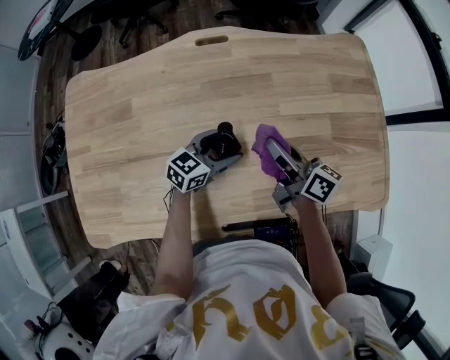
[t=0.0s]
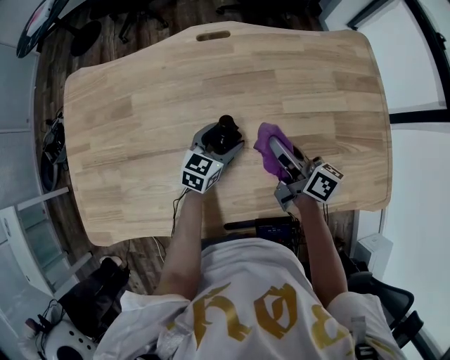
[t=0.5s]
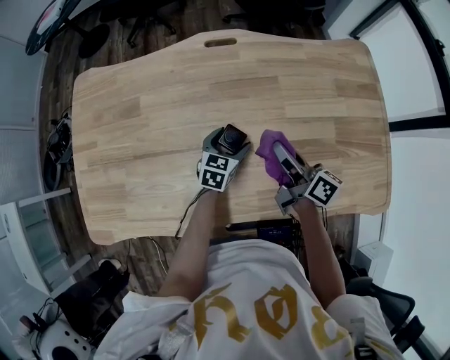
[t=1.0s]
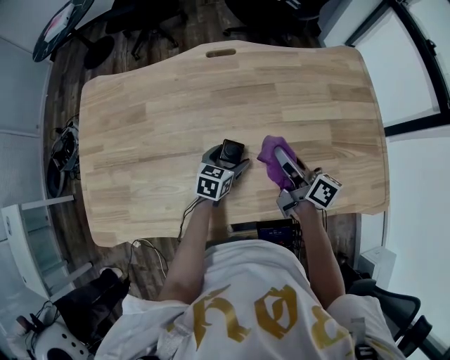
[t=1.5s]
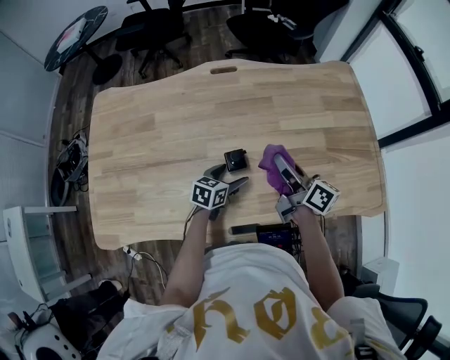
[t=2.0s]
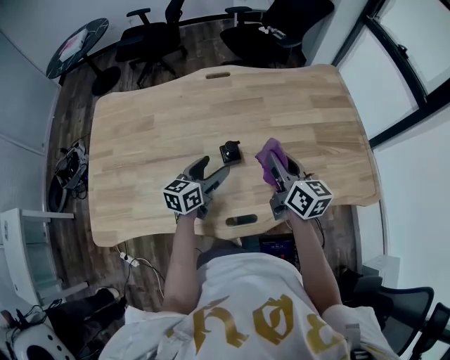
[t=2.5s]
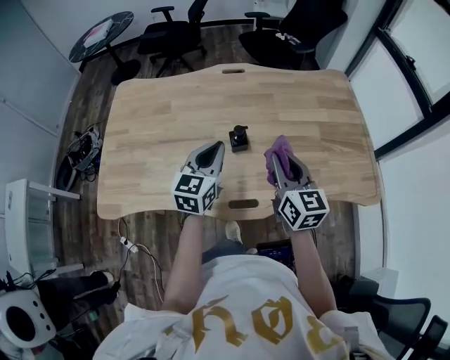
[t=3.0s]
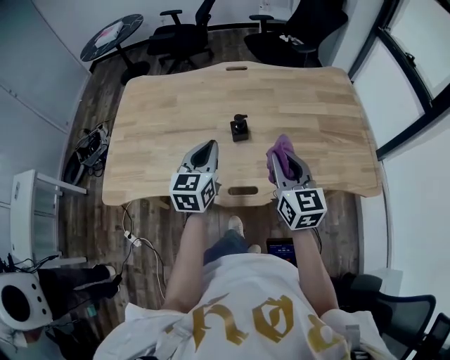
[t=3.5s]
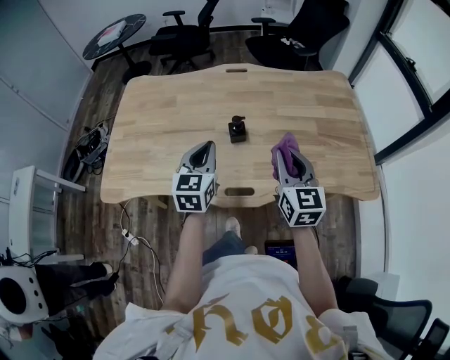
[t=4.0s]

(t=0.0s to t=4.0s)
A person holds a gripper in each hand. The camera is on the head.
t=0.0s - t=2.0s: The grippers both shift backward by some 5 cm. The left gripper swivels approximately 20 degrees.
t=2.0s - t=4.0s: The right gripper is displaced backward and upward by roughly 20 cm, and twists about 50 degrees counterclockwise, seen from behind; the left gripper goes about 30 cm upward and backward, changes its angle by approximately 40 degrees, and closes up.

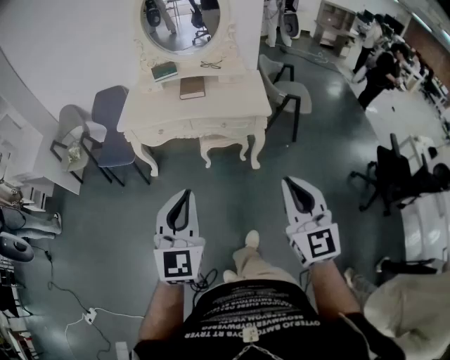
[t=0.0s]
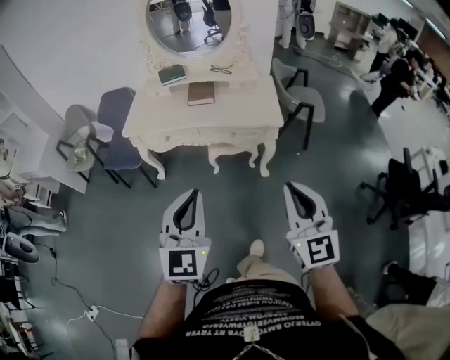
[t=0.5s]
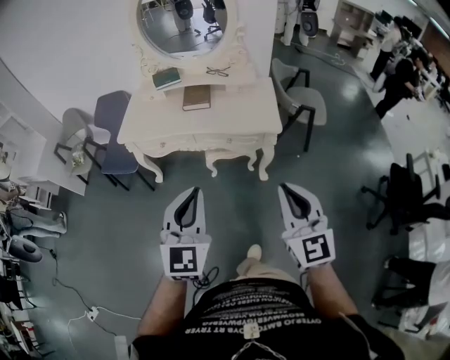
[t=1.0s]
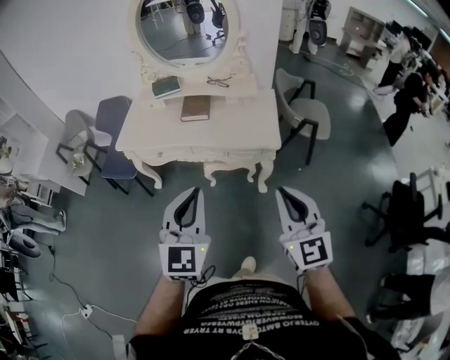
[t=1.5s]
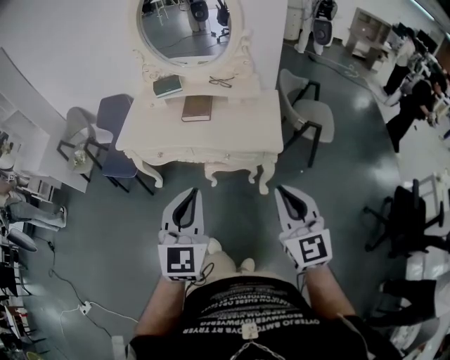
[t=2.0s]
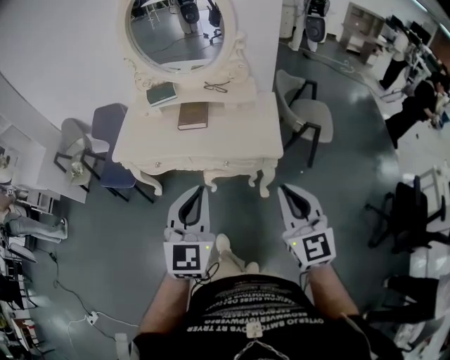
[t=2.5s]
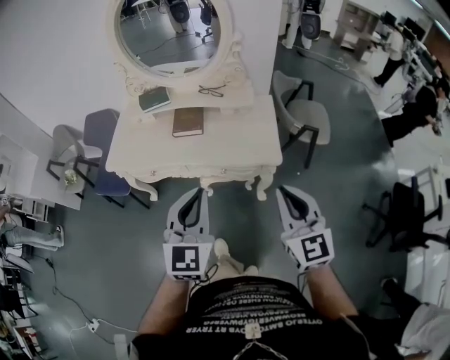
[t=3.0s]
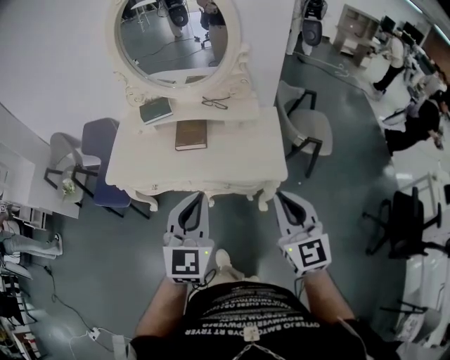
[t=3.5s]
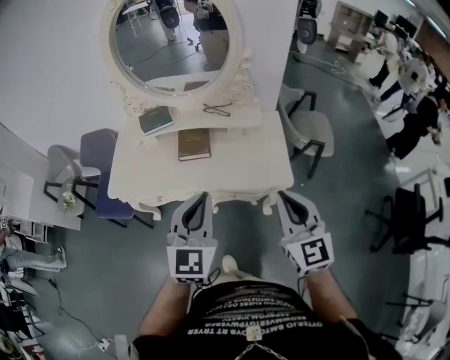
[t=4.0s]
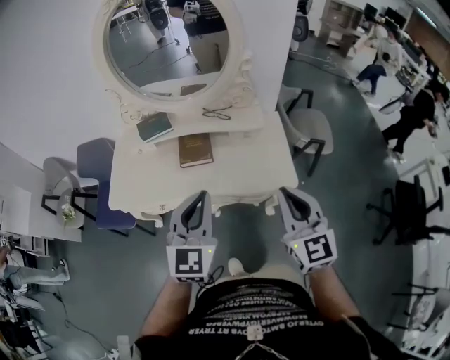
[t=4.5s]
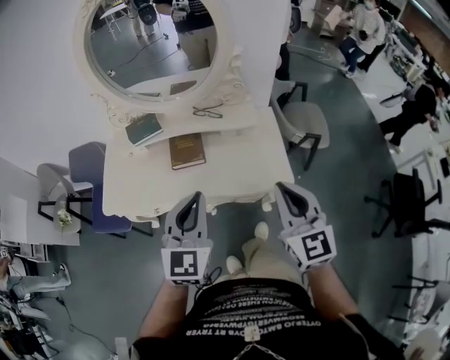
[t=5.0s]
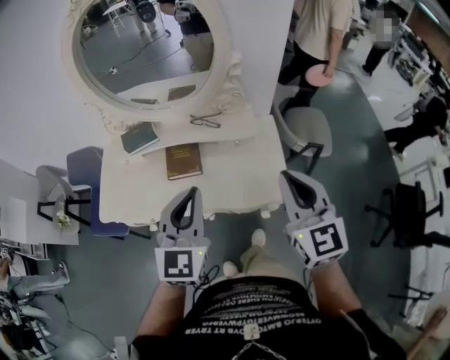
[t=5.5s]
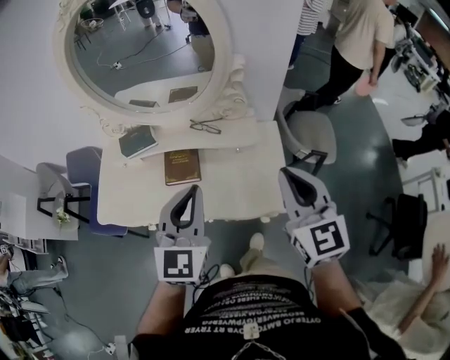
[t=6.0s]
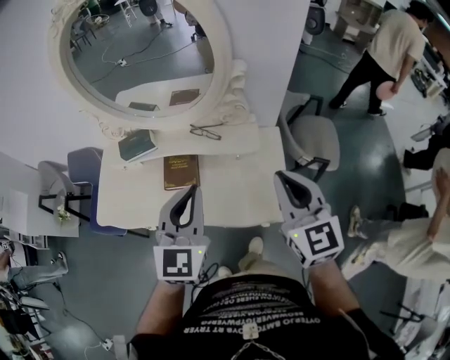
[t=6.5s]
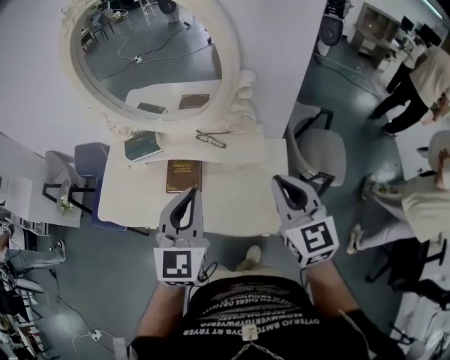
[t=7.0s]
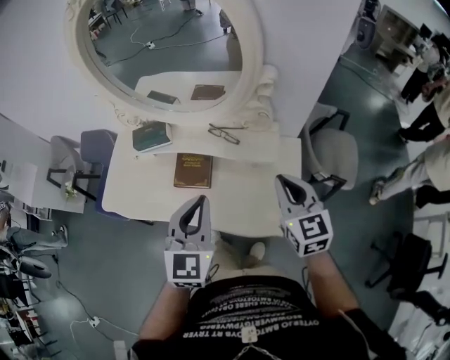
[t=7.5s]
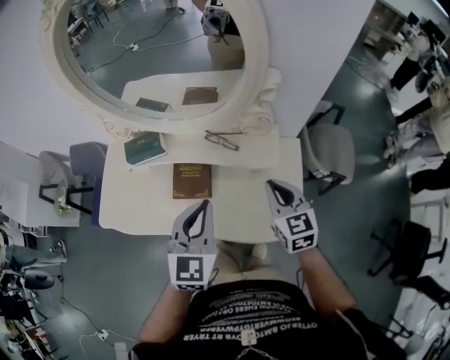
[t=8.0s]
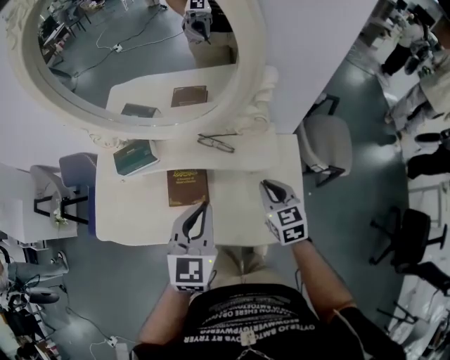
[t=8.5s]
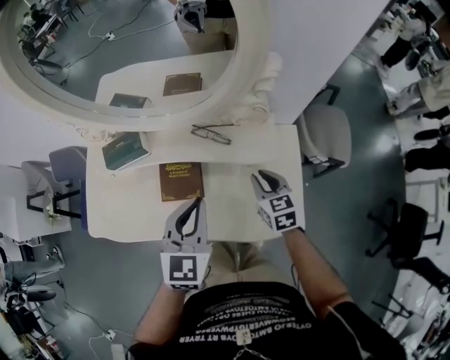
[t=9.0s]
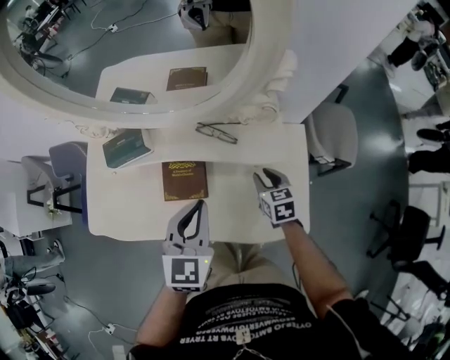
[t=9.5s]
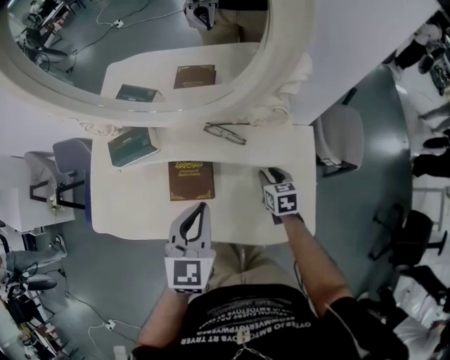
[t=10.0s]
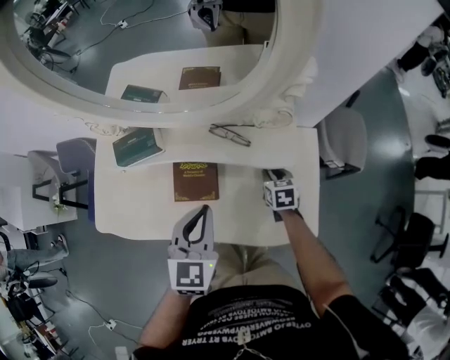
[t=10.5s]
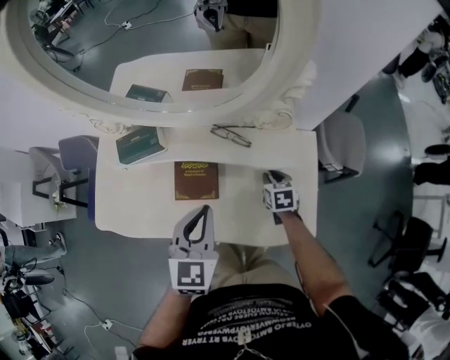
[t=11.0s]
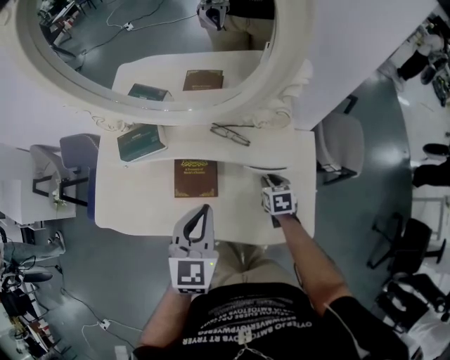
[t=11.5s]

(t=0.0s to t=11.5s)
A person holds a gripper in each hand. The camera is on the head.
t=0.0s - t=2.0s: Both grippers travel together forward and to the right, roughly 25 cm.
t=2.0s - t=4.0s: Both grippers travel together forward, some 20 cm.
t=4.0s - t=6.0s: The two grippers go approximately 20 cm forward.
t=6.0s - t=7.5s: The left gripper goes about 10 cm downward and forward, while the right gripper heads downward and forward, covering roughly 15 cm.
t=7.5s - t=9.5s: The left gripper moves downward and forward, roughly 15 cm. The right gripper goes roughly 25 cm downward, swivels roughly 30 degrees, and opens.
t=9.5s - t=11.5s: The right gripper shifts roughly 5 cm downward.

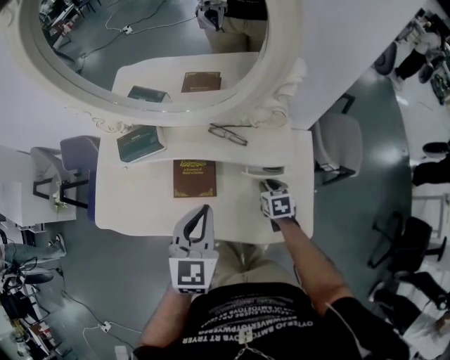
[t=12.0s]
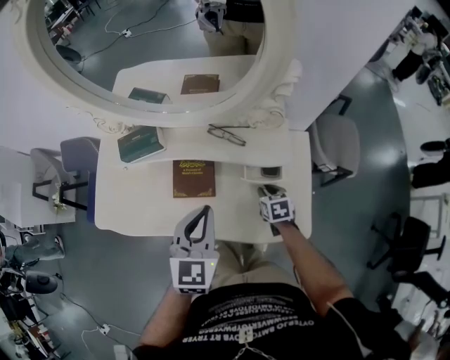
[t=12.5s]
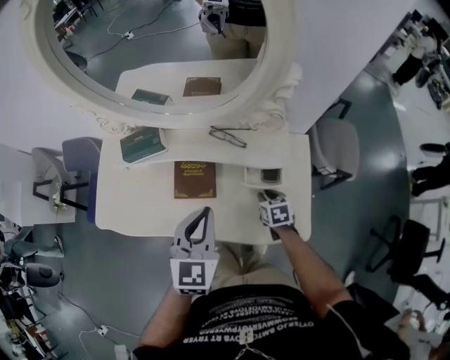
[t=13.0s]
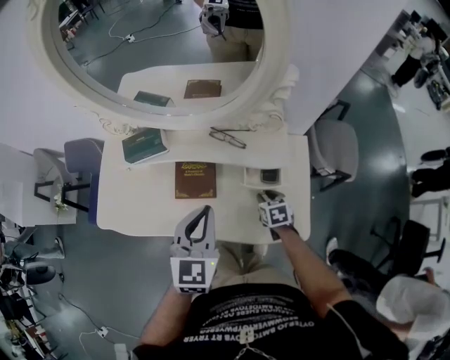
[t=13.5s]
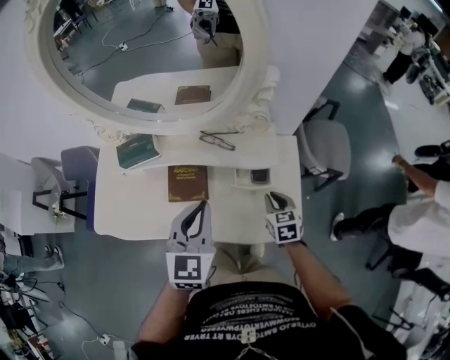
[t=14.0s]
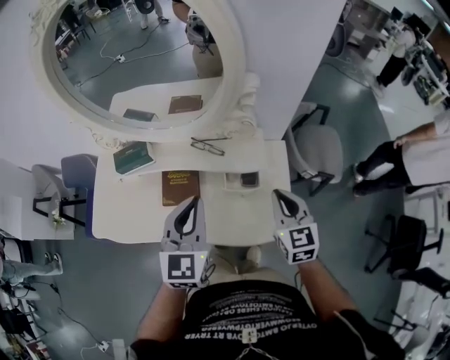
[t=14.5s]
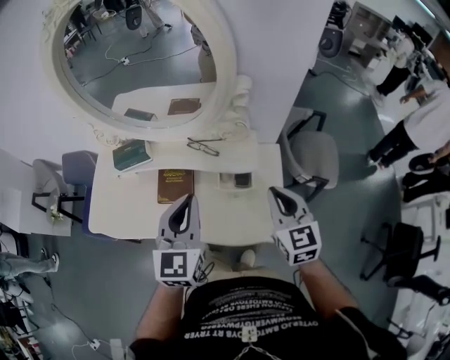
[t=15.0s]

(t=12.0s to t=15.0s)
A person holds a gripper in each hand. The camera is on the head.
t=12.0s - t=13.5s: The grippers make only small movements.
t=13.5s - t=15.0s: The left gripper travels upward and to the right by about 10 cm. Meanwhile the right gripper moves upward, roughly 30 cm, tilts its fingers some 40 degrees upward, and closes.

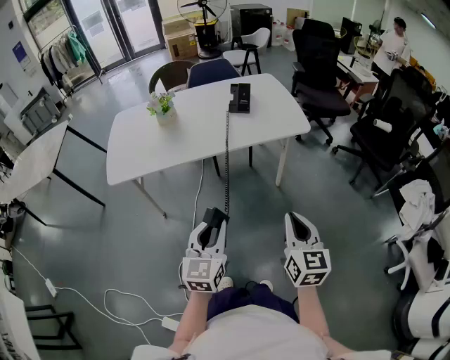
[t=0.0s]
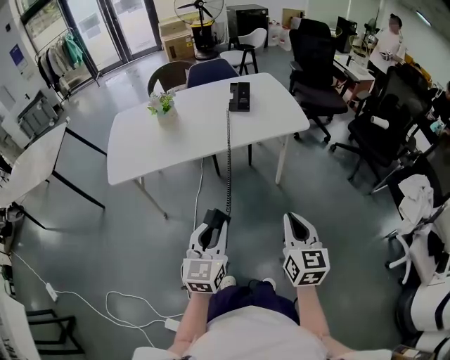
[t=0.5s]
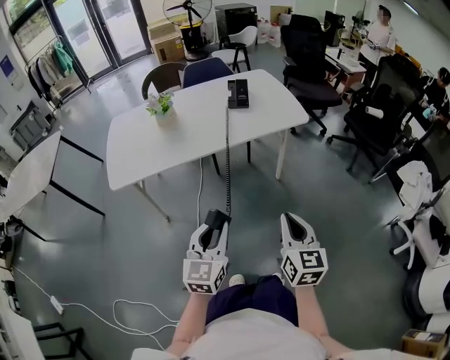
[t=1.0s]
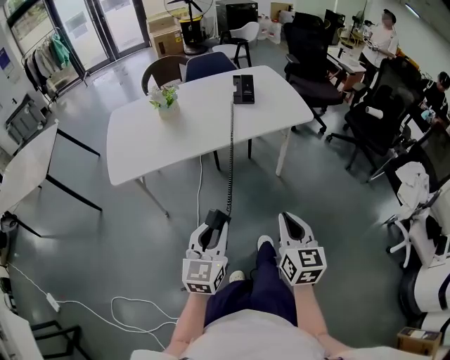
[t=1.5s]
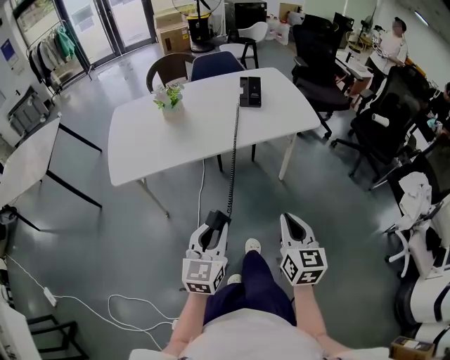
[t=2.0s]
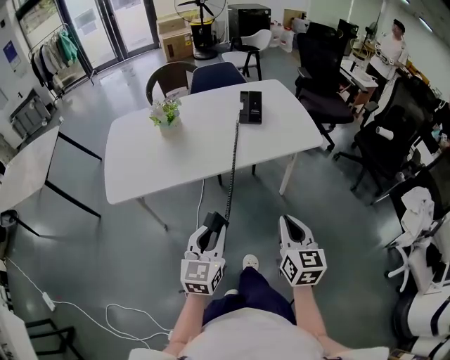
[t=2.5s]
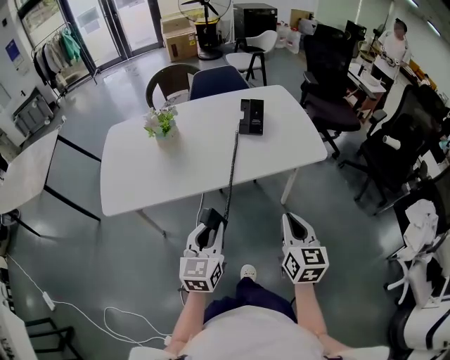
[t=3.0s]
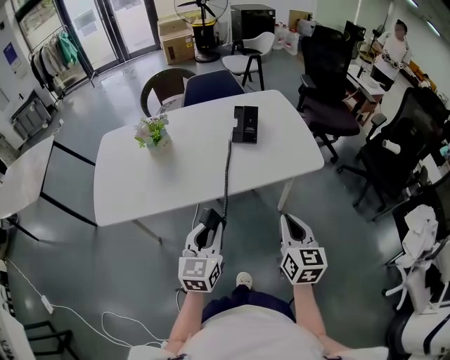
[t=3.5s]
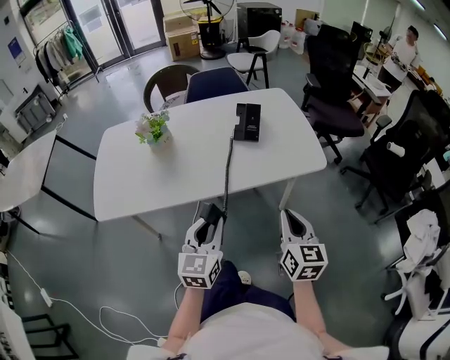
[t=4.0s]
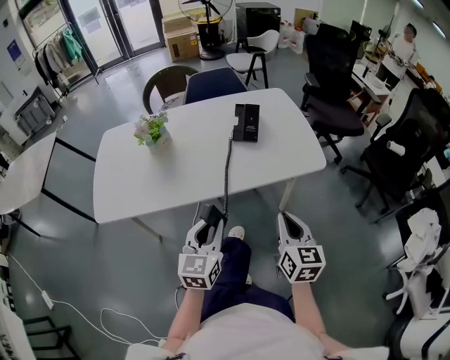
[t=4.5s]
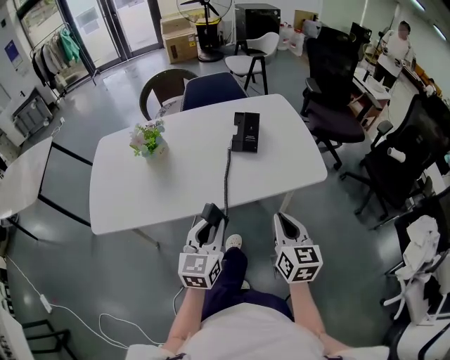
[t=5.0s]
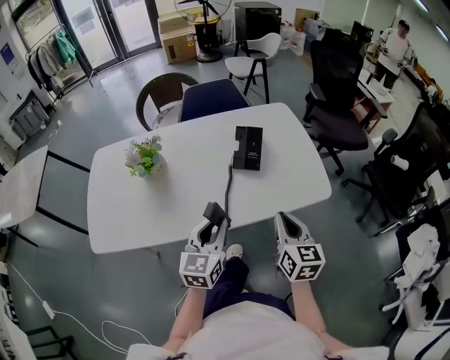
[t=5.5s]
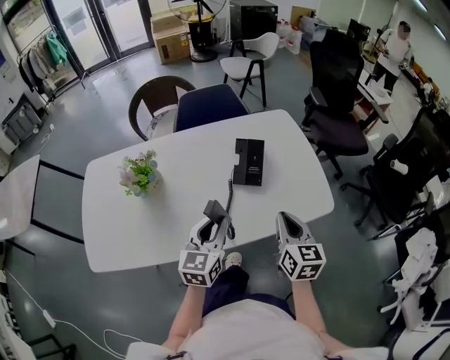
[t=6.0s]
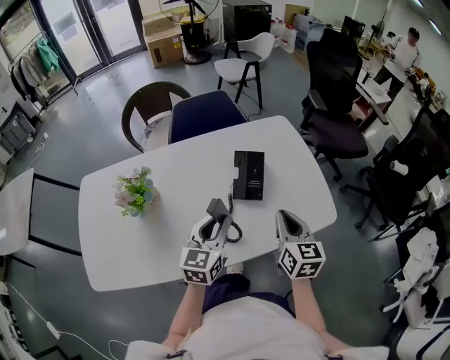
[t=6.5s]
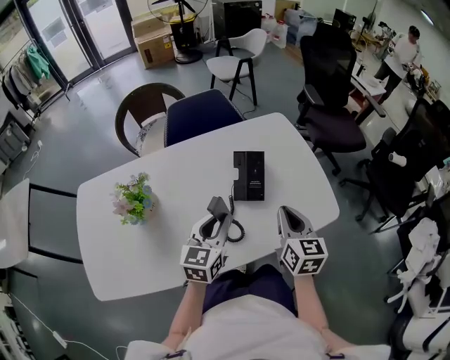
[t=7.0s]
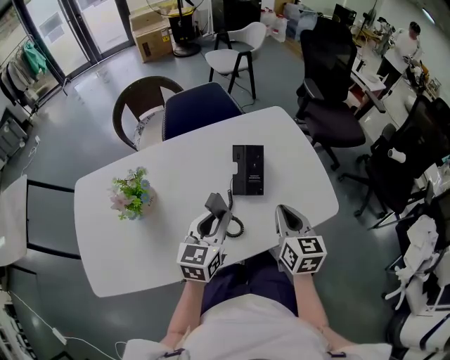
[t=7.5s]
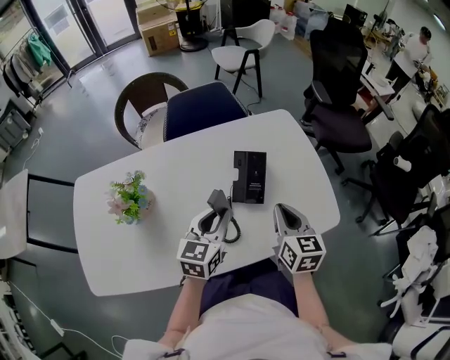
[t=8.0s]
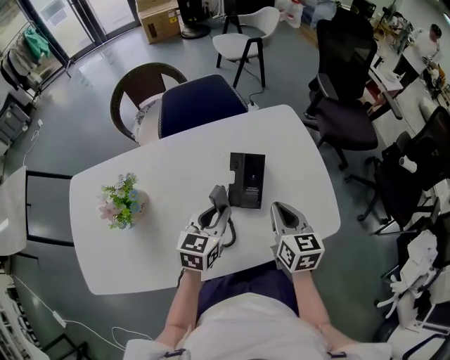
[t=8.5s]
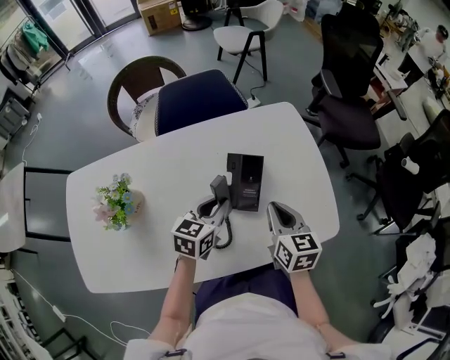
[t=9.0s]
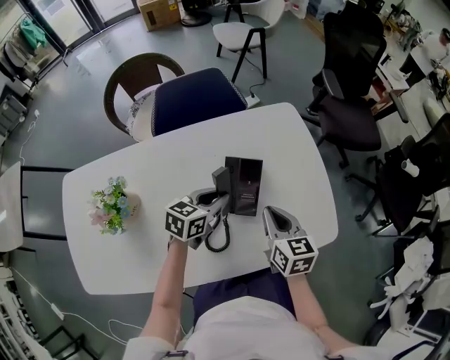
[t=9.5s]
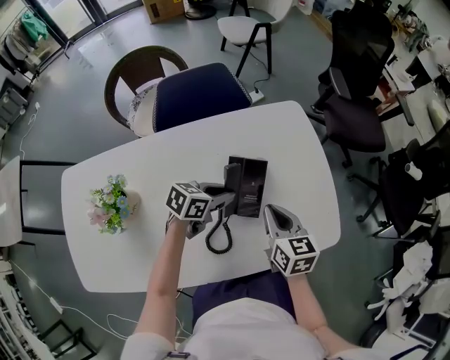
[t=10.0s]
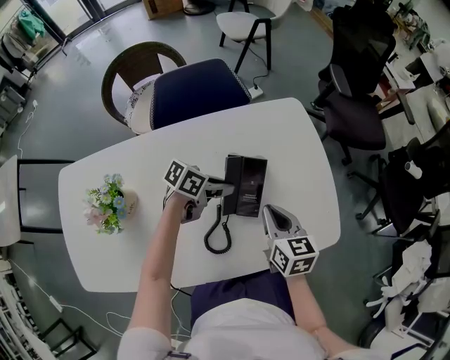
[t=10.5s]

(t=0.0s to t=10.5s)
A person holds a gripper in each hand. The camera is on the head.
t=0.0s - t=2.0s: The grippers both shift to the left by roughly 10 cm.
t=2.0s - t=4.0s: Both grippers travel together forward, about 25 cm.
t=4.0s - t=6.5s: The two grippers go about 25 cm forward.
t=6.5s - t=8.5s: The right gripper travels forward by about 10 cm. The left gripper heads forward and downward, covering roughly 10 cm.
t=8.5s - t=10.5s: The right gripper changes place by roughly 5 cm. The left gripper is displaced forward and downward by about 15 cm, and turns by some 50 degrees.
